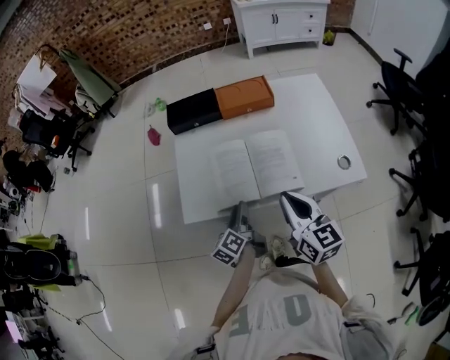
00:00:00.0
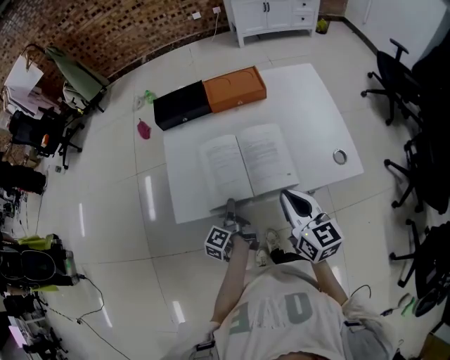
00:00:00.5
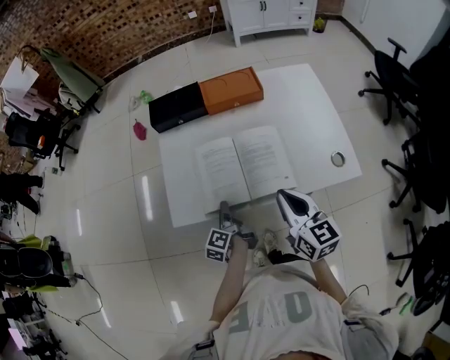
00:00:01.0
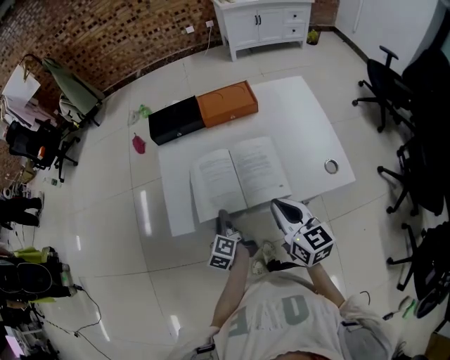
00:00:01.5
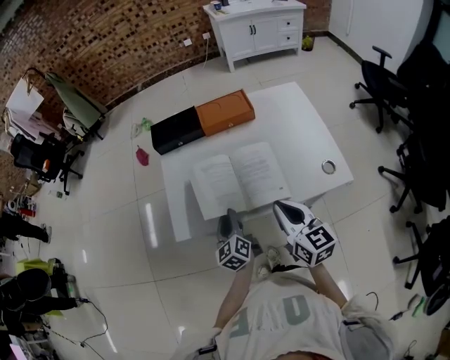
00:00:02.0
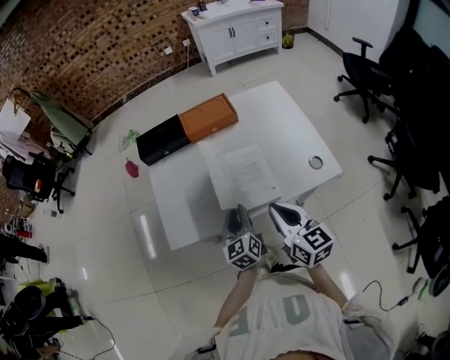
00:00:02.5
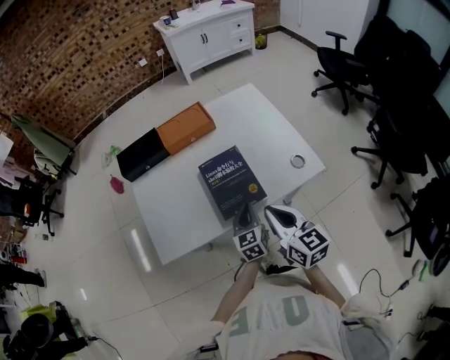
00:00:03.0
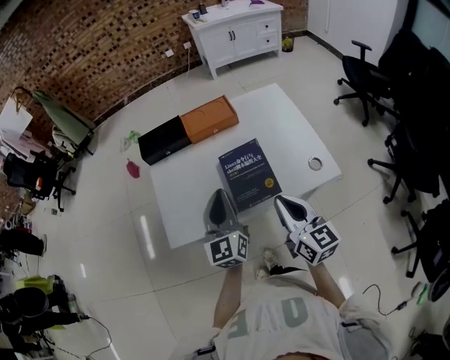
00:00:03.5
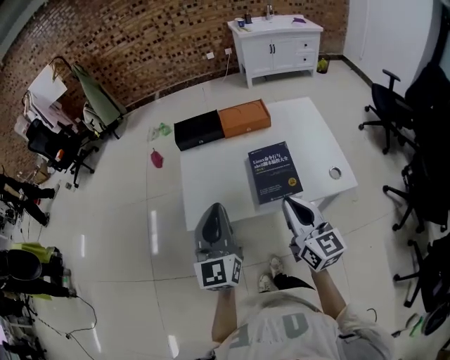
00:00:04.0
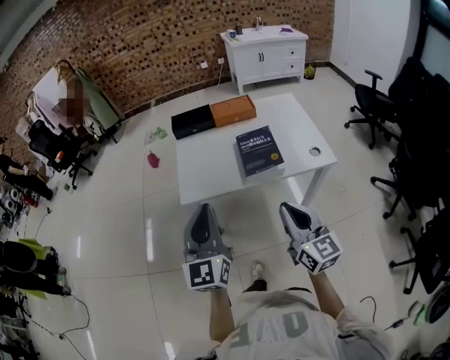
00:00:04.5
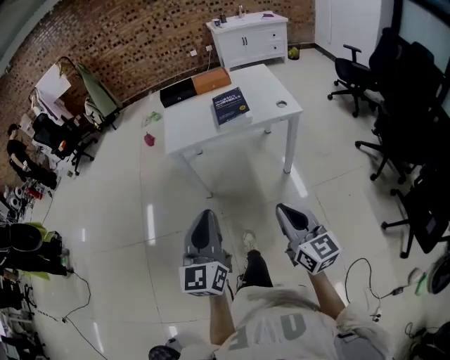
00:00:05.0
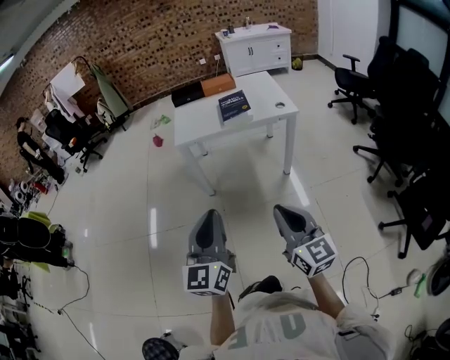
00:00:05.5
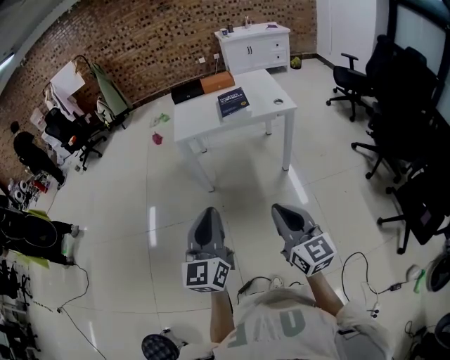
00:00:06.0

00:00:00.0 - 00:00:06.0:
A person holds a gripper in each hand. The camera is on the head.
00:00:00.0 - 00:00:02.0: The left gripper goes downward and returns, some 5 cm each way, and changes its angle by about 30 degrees.
00:00:02.0 - 00:00:04.0: The right gripper goes roughly 10 cm upward and backward. The left gripper heads upward, covering approximately 25 cm, and rotates roughly 40 degrees.
00:00:04.0 - 00:00:06.0: The pair of grippers is taken backward, some 60 cm.

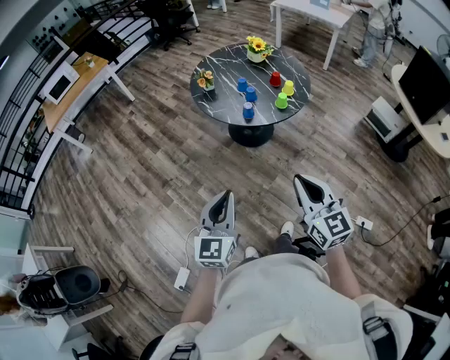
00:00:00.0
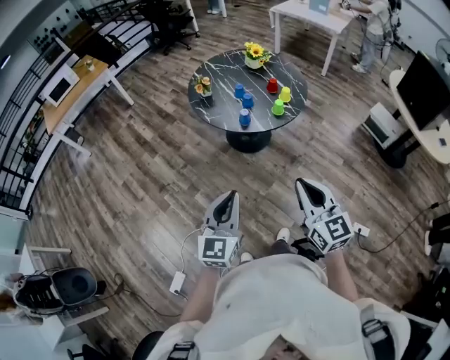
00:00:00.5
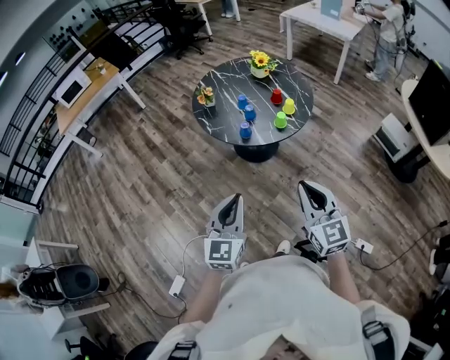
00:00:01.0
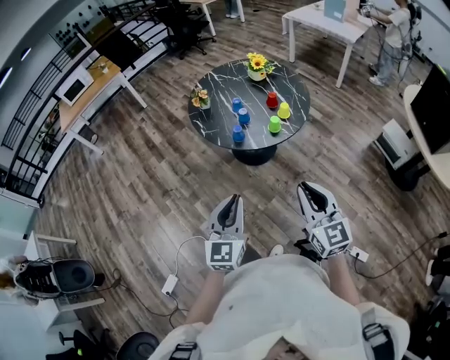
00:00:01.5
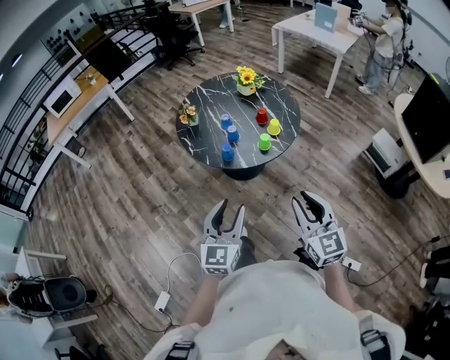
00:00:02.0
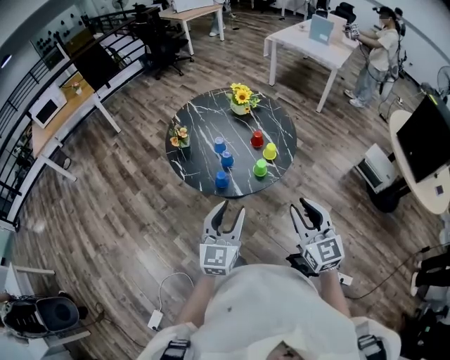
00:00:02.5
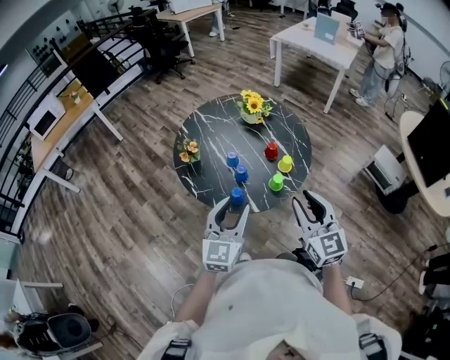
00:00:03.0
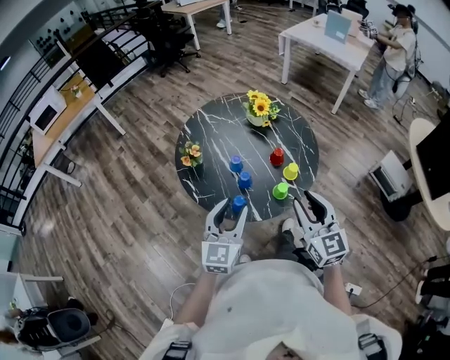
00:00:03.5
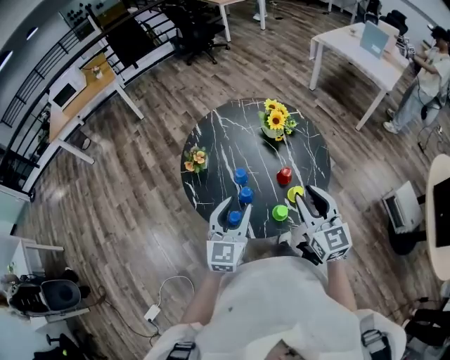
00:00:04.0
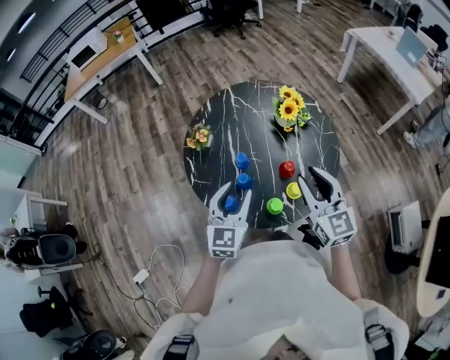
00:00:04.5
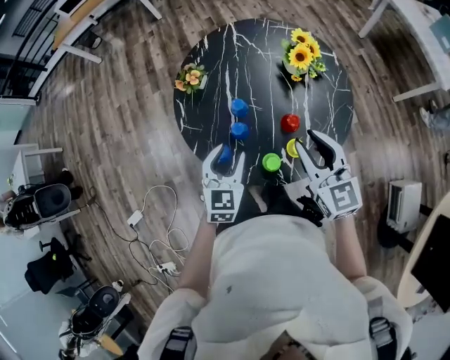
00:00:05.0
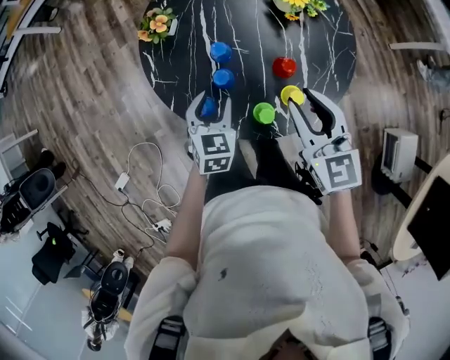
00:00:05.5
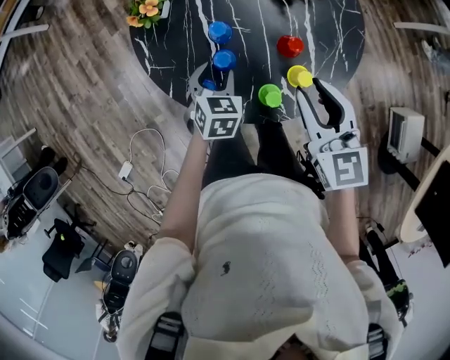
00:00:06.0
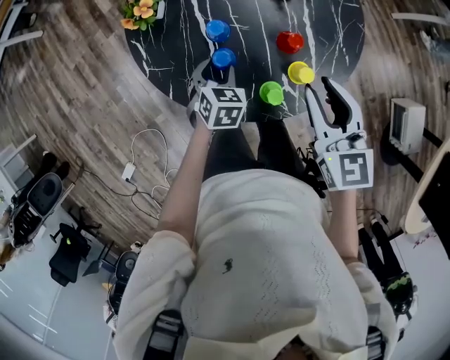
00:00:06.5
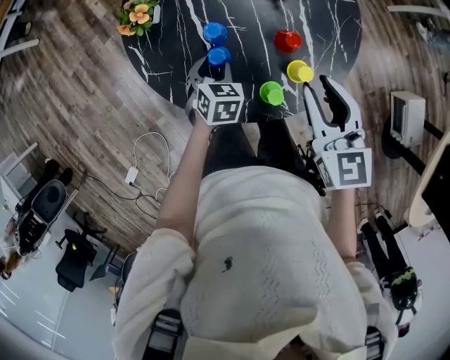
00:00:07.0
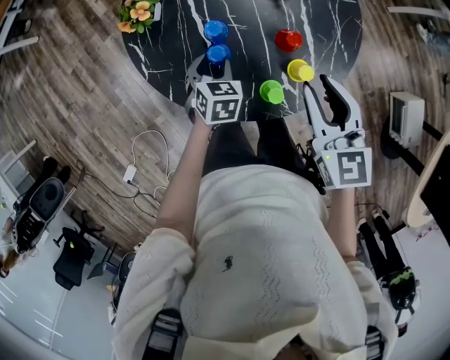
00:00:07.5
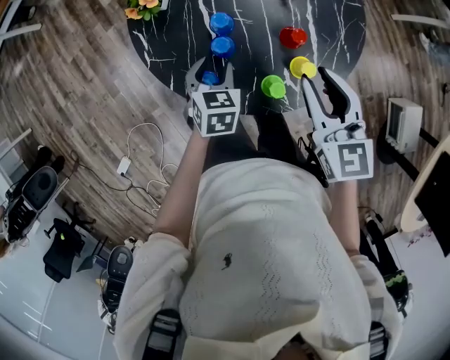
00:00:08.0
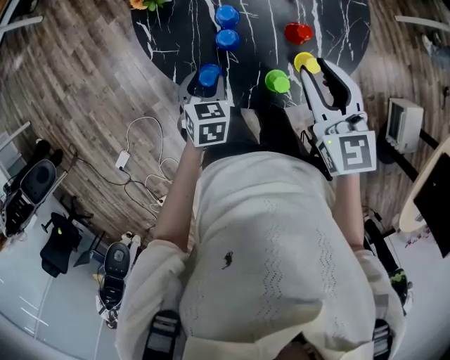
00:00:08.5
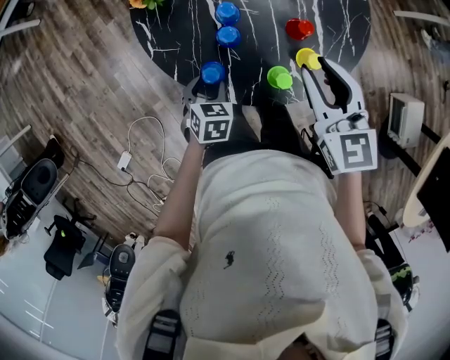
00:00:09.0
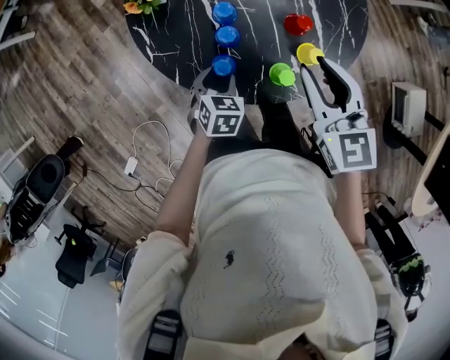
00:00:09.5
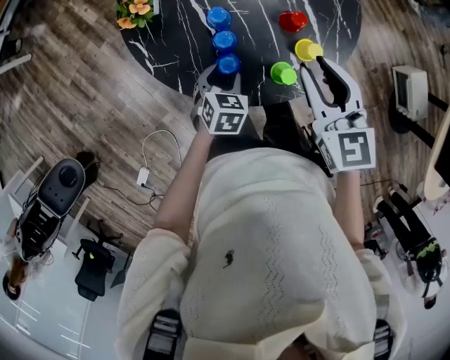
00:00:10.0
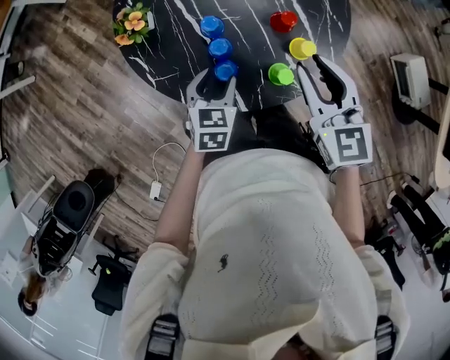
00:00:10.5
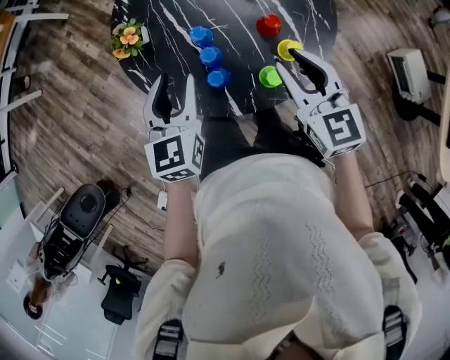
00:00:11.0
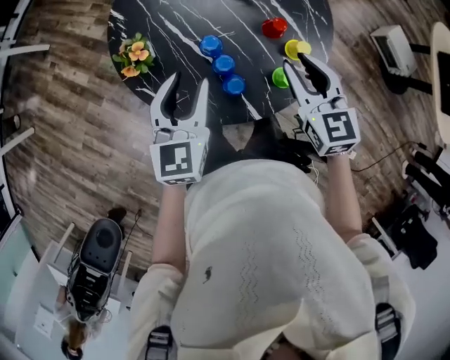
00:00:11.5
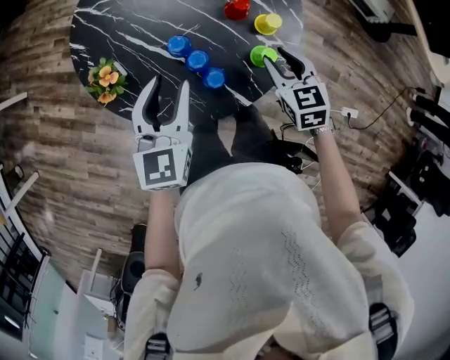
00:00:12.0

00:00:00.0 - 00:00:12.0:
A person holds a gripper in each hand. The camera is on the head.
00:00:00.0 - 00:00:02.0: The grippers both shift to the right and forward by approximately 25 cm. The right gripper opens its fingers. The left gripper opens up.
00:00:02.0 - 00:00:04.0: Both grippers are carried forward, about 50 cm.
00:00:04.0 - 00:00:06.0: The left gripper shifts about 30 cm downward, and angles its fingers downward, by about 40 degrees. The right gripper is displaced downward and forward by approximately 20 cm.
00:00:06.0 - 00:00:08.0: The grippers make only small movements.
00:00:08.0 - 00:00:10.0: The left gripper travels downward by some 5 cm.
00:00:10.0 - 00:00:12.0: The right gripper travels downward by about 10 cm, and turns by about 40 degrees, while the left gripper travels upward by some 20 cm, and points its fingers roughly 40 degrees further upward.

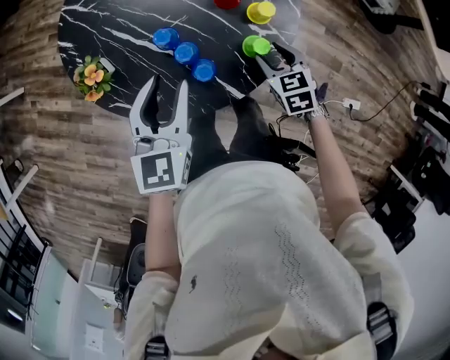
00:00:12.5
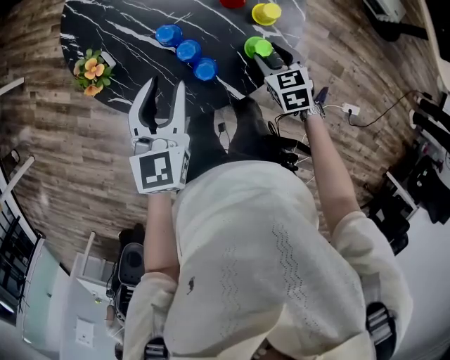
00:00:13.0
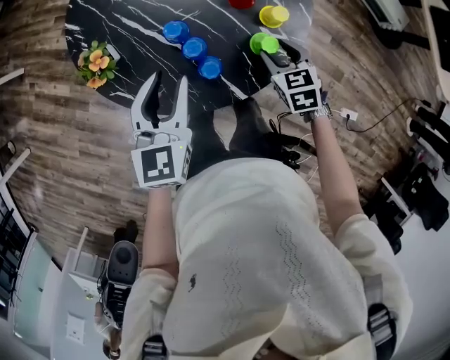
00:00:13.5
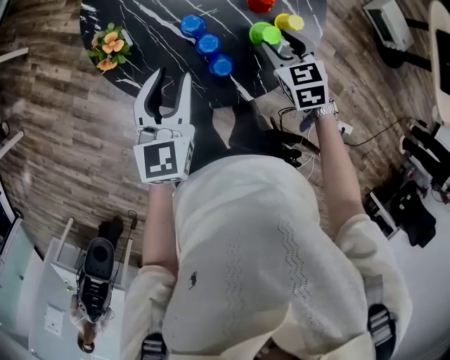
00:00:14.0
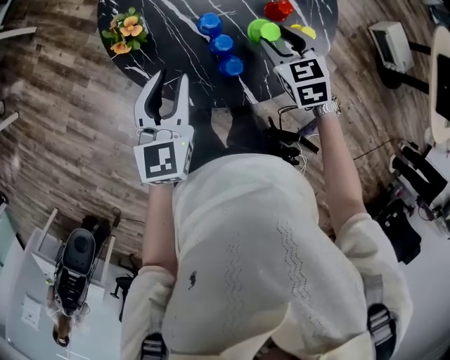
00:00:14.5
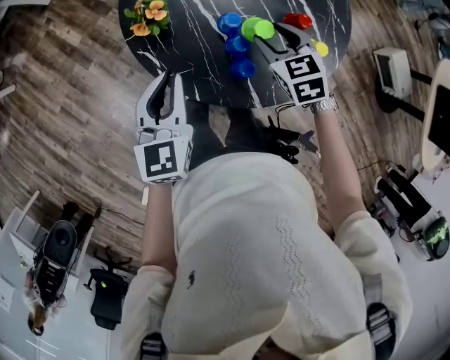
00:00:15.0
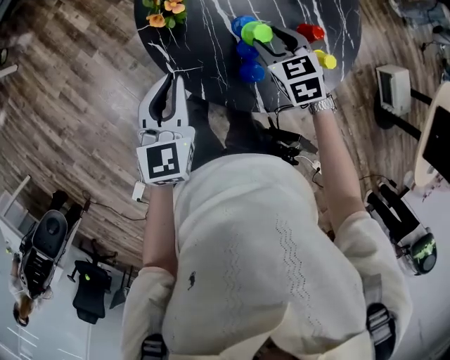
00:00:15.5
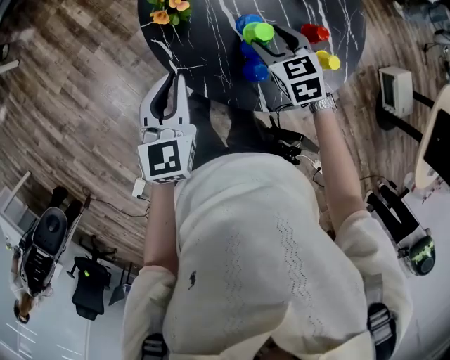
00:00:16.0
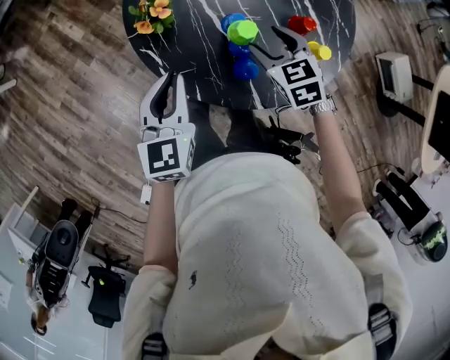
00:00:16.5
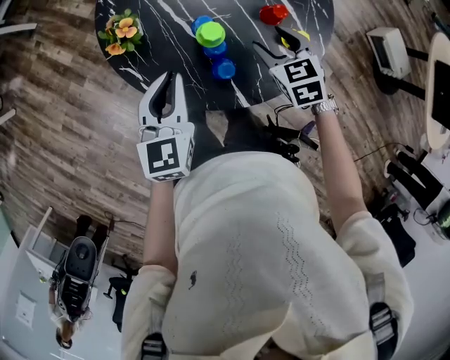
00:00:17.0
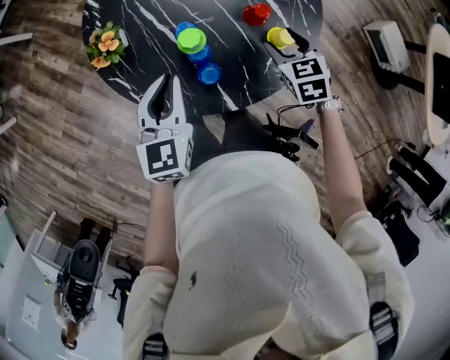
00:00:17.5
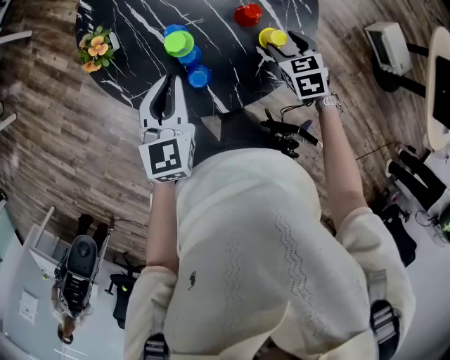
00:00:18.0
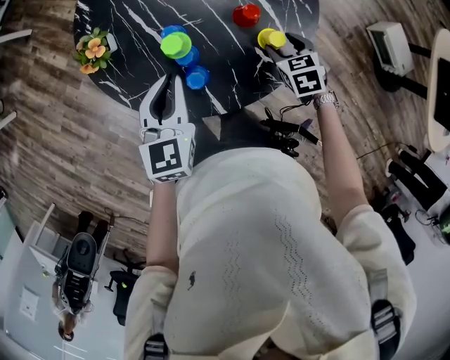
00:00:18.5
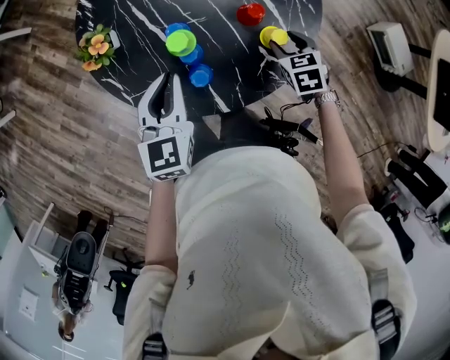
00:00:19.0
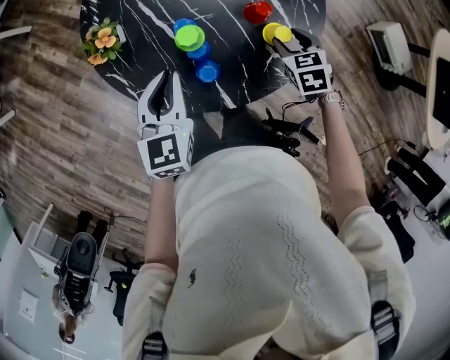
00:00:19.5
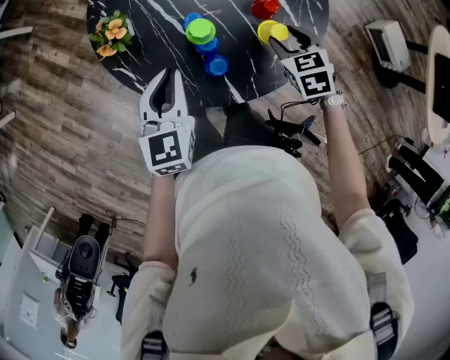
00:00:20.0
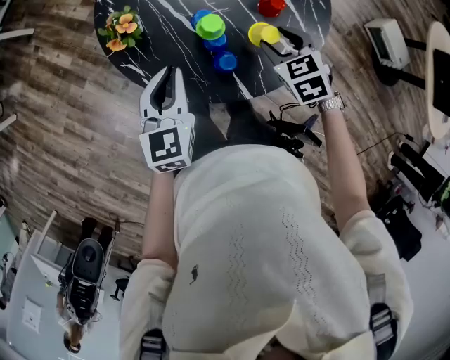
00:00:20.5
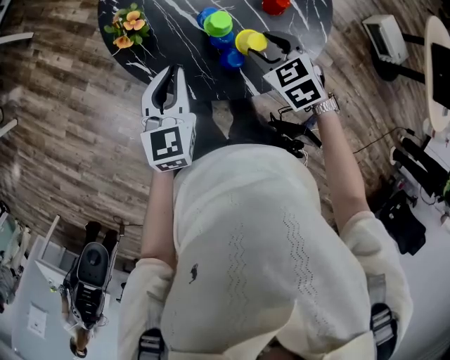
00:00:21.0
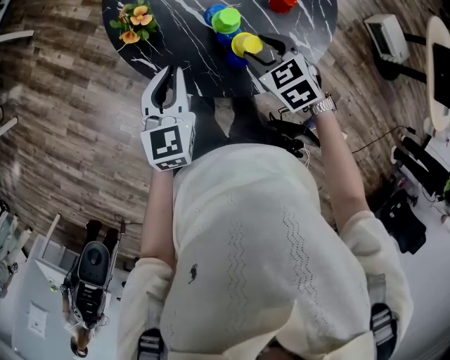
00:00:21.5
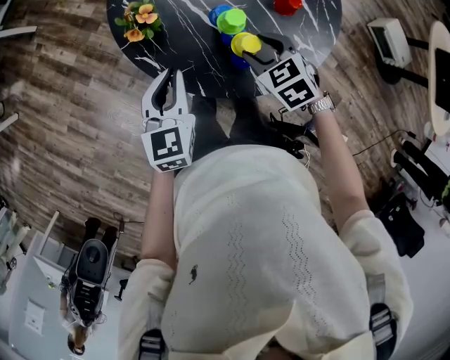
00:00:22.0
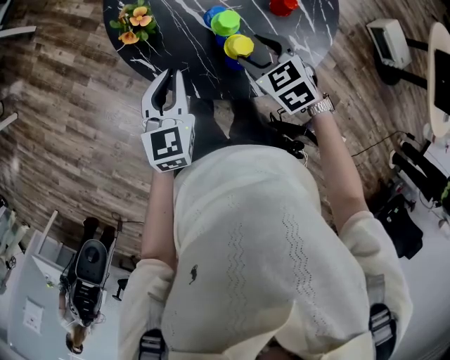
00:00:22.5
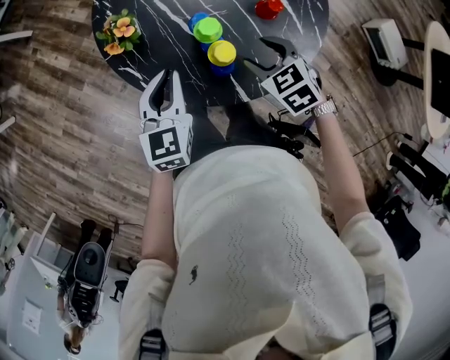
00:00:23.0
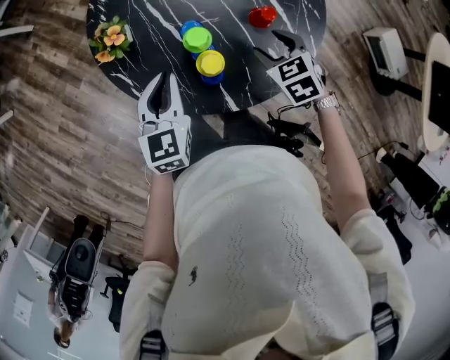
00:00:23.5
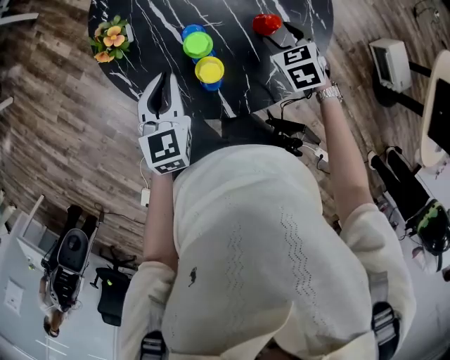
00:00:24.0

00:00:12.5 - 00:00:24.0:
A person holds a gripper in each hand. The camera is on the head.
00:00:12.5 - 00:00:14.5: The right gripper goes approximately 15 cm to the left, upward and forward. Meanwhile the left gripper shifts about 10 cm to the left.
00:00:14.5 - 00:00:16.5: Both grippers move to the left, roughly 5 cm. The left gripper closes.
00:00:16.5 - 00:00:18.5: Both grippers travel together to the right, roughly 20 cm.
00:00:18.5 - 00:00:20.0: The left gripper heads to the left, covering some 10 cm. The right gripper goes roughly 10 cm to the left and upward.
00:00:20.0 - 00:00:22.0: The left gripper goes roughly 10 cm to the left. Meanwhile the right gripper is displaced to the left by some 20 cm.
00:00:22.0 - 00:00:24.0: The left gripper shifts approximately 10 cm to the right. Meanwhile the right gripper shifts some 20 cm to the right and forward.
